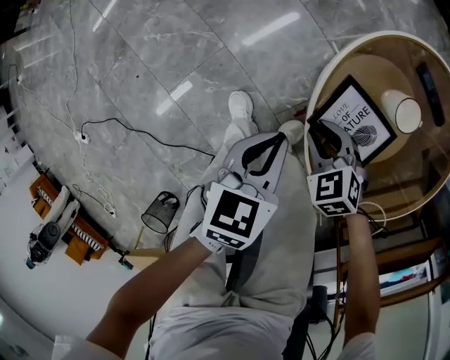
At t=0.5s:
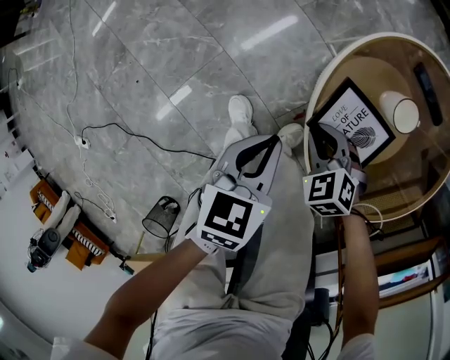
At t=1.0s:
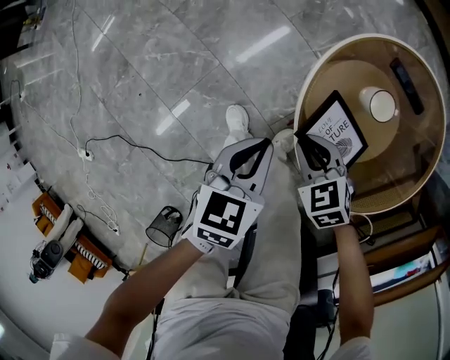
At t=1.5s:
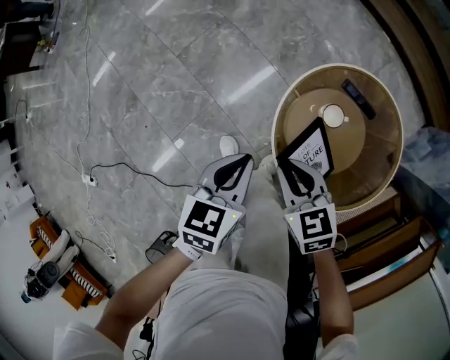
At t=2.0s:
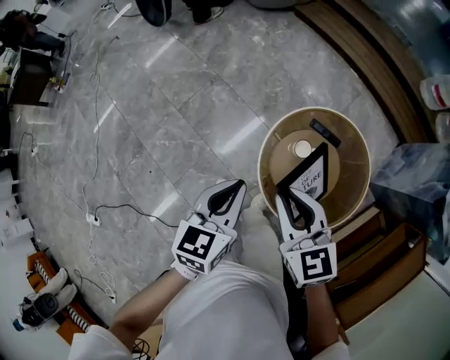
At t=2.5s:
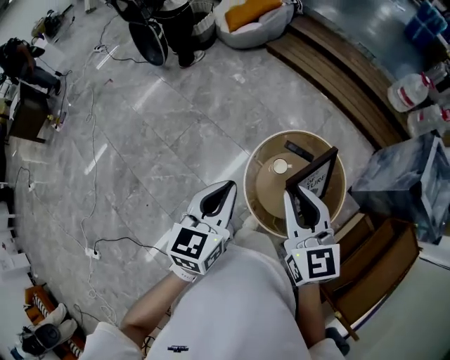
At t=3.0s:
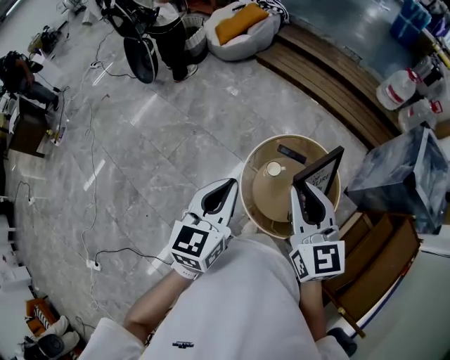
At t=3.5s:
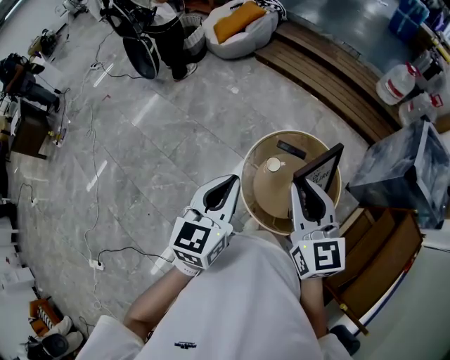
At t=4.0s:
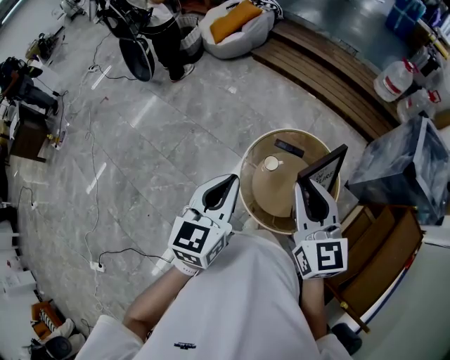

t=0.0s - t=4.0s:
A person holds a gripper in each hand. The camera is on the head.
t=0.0s - t=2.0s: The grippers both shift upward by roughly 40 cm. The right gripper tilts its fingers approximately 40 degrees upward.
t=2.0s - t=4.0s: The two grippers go some 20 cm upward and to the right. The right gripper turns by roughly 30 degrees.

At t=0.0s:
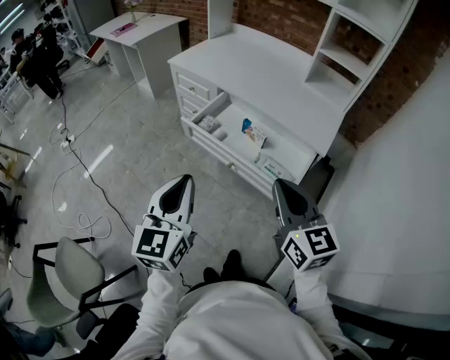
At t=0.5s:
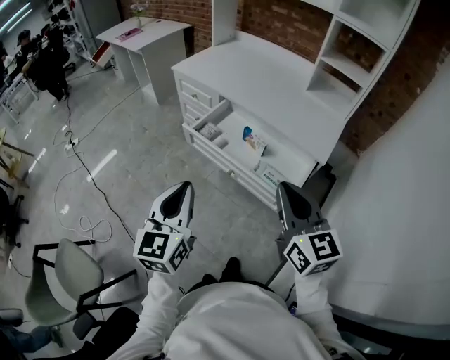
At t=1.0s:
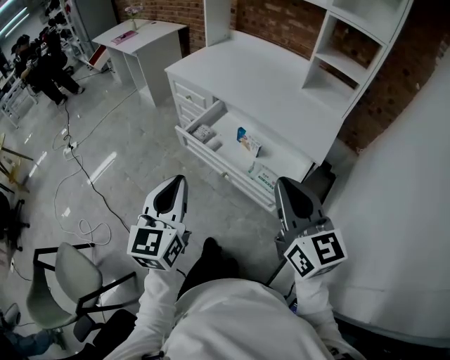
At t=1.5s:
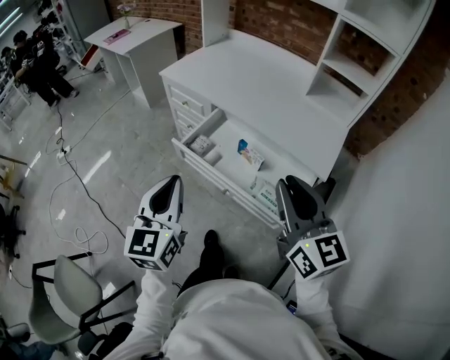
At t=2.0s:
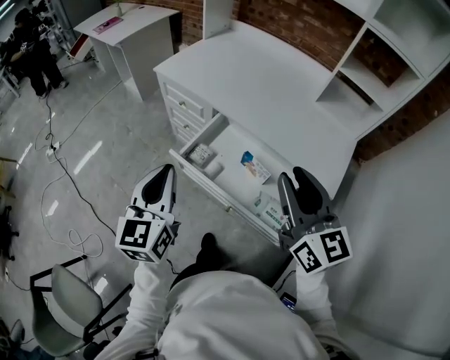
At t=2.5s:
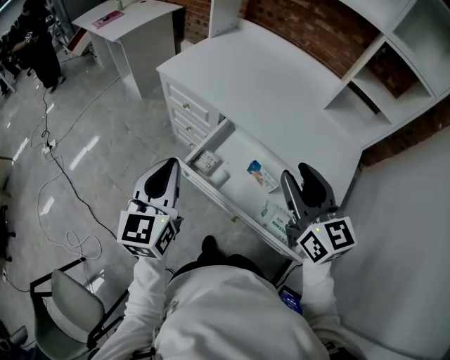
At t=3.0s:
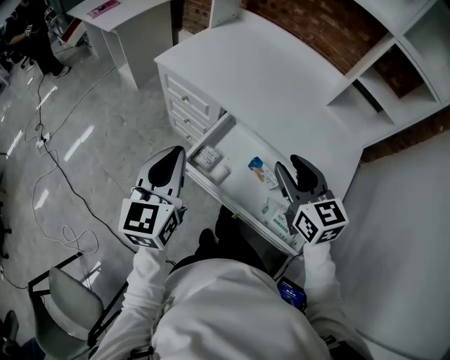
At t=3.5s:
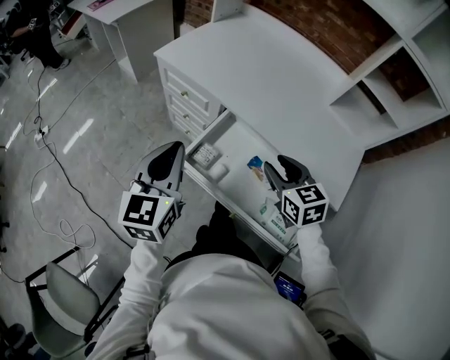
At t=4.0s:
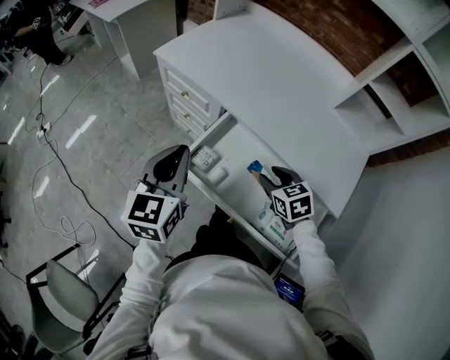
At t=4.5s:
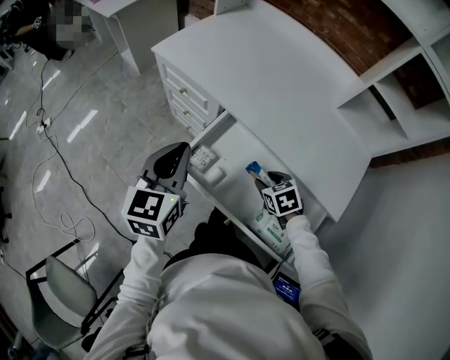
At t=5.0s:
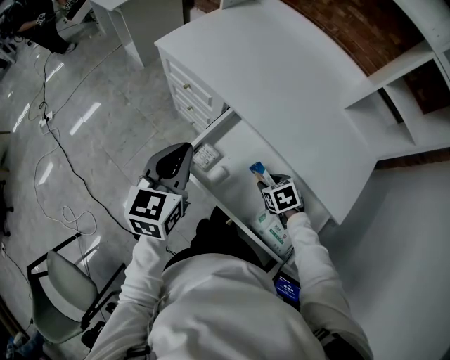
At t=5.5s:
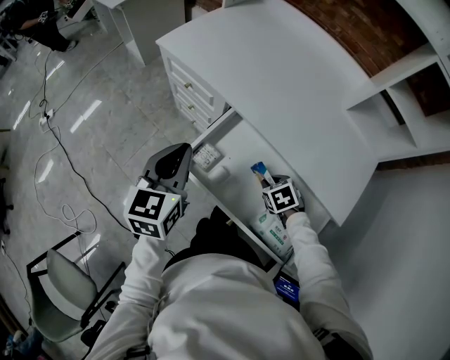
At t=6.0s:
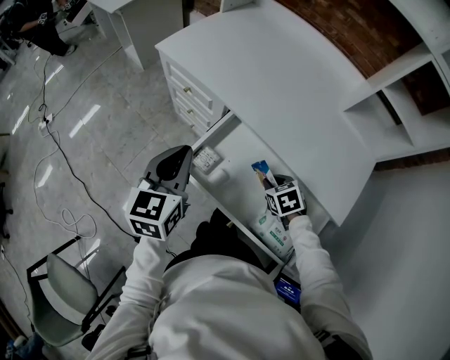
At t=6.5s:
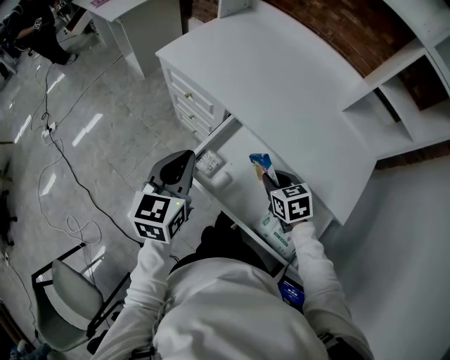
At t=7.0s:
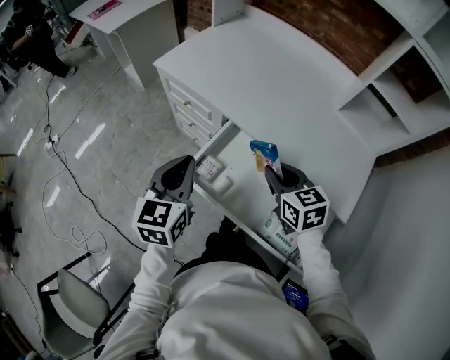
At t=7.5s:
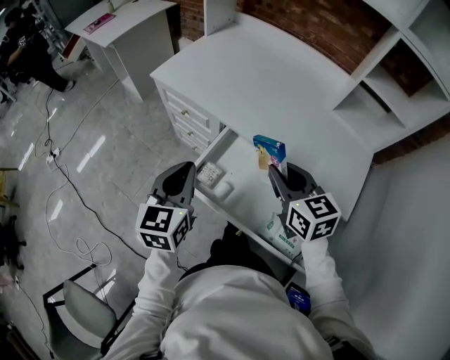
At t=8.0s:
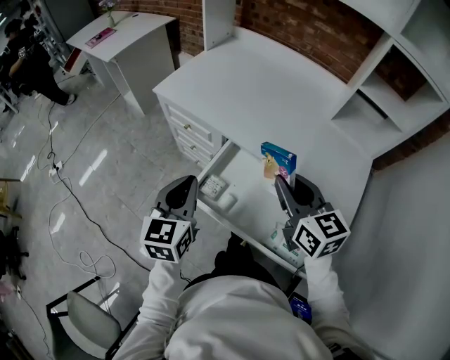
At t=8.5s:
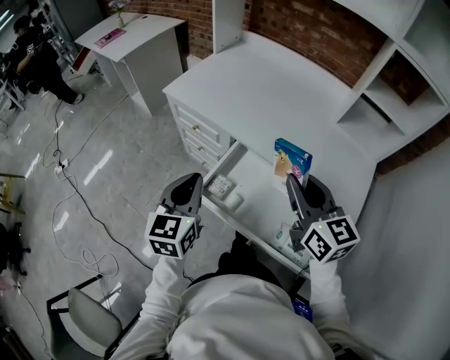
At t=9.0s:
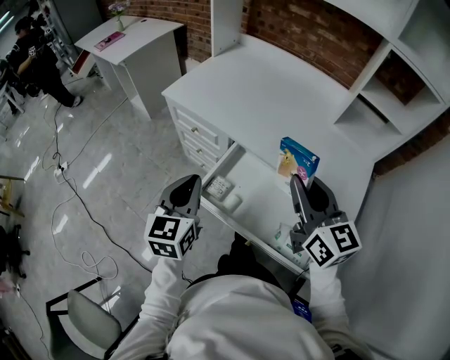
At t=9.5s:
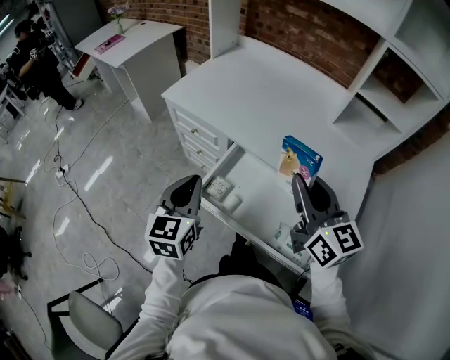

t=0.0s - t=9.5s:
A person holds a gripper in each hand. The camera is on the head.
t=0.0s - t=2.0s: The grippers both shift forward by approximately 25 cm. The right gripper opens up.
t=2.0s - t=4.0s: The left gripper is displaced forward by some 15 cm. Meanwhile the right gripper heads downward and forward, covering some 30 cm, and angles its fingers downward, by roughly 50 degrees.
t=4.0s - t=5.5s: The right gripper goes about 10 cm downward, changes its angle by approximately 20 degrees, and closes its fingers.
t=5.5s - t=7.5s: The right gripper travels upward by about 25 cm, and tilts its fingers about 50 degrees upward.
t=7.5s - t=9.5s: The right gripper heads upward, covering about 10 cm, and swivels roughly 20 degrees.

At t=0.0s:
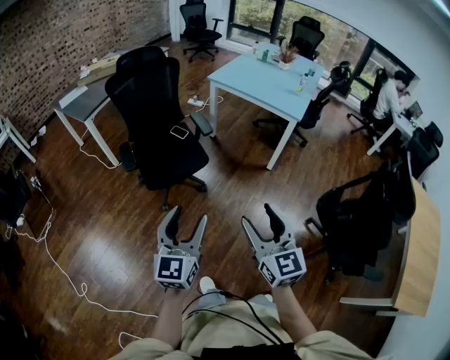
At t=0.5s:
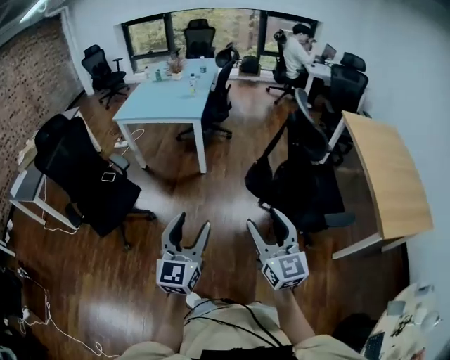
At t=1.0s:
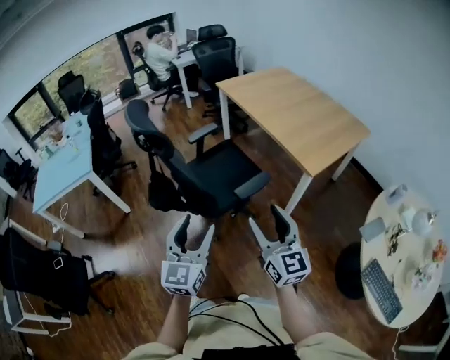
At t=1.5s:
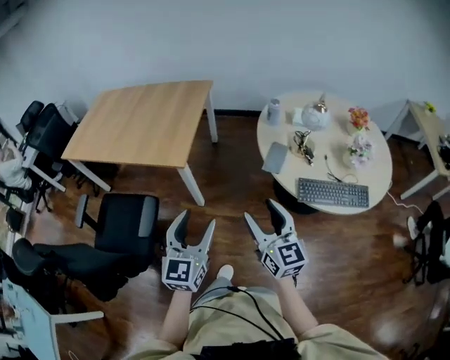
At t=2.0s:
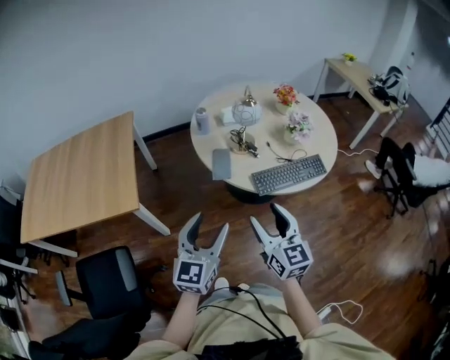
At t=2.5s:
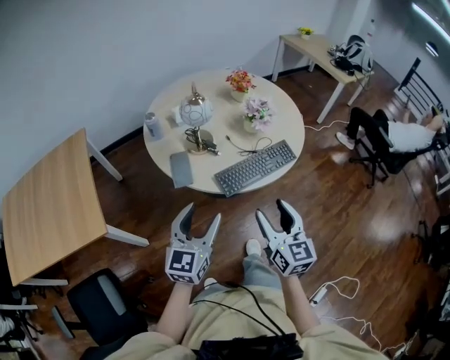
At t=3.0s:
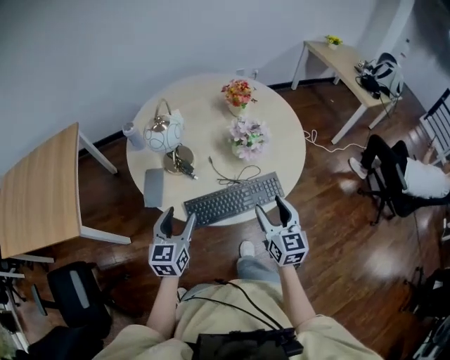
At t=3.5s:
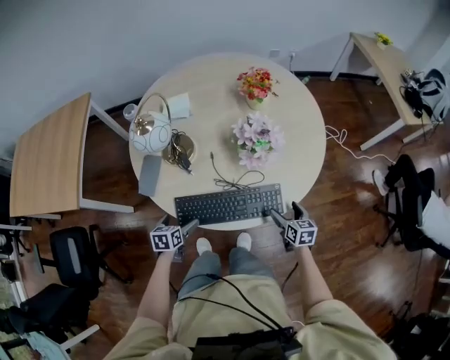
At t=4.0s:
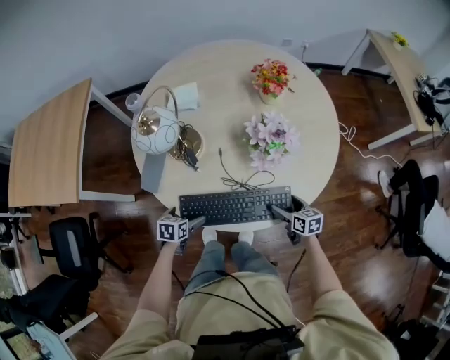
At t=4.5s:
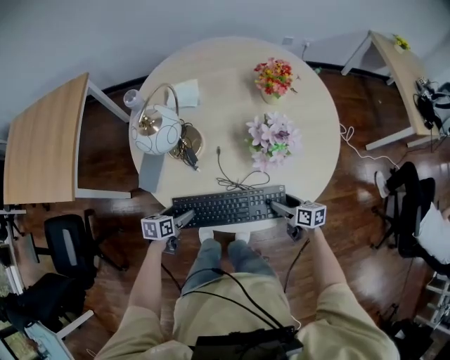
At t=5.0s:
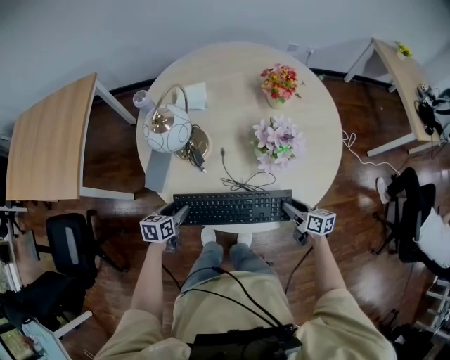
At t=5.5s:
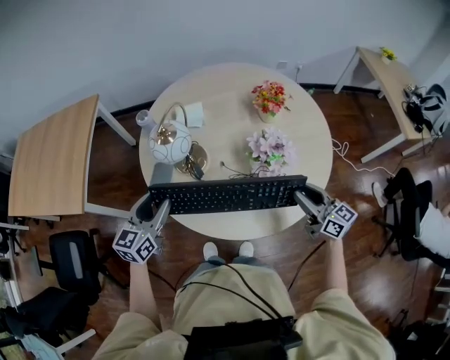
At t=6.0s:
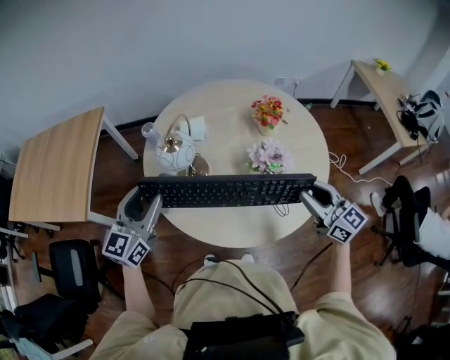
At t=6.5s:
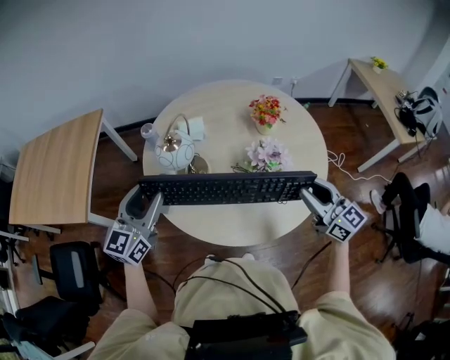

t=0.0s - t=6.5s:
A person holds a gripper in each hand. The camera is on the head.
t=0.0s - t=2.0s: Both grippers are carried approximately 1 m. The left gripper swivels approximately 150 degrees. Meanwhile the right gripper turns by roughly 140 degrees.
t=2.0s - t=4.5s: The right gripper shifts by some 70 cm, and points its fingers some 30 degrees further downward. The left gripper heads downward, covering approximately 40 cm, and tilts its fingers some 40 degrees downward.
t=4.5s - t=6.5s: The grippers both shift upward by about 40 cm. The left gripper angles its fingers upward, by some 40 degrees. The right gripper tips its fingers upward by some 30 degrees, and closes.

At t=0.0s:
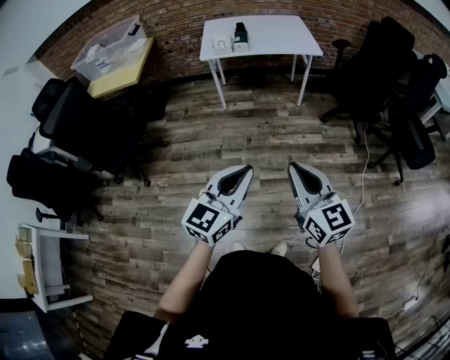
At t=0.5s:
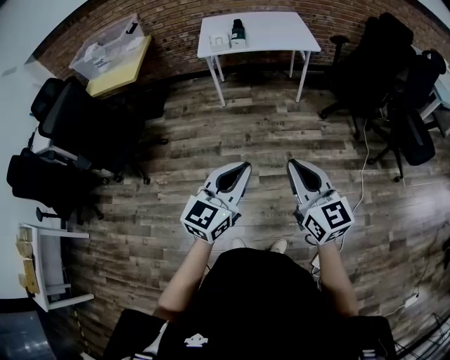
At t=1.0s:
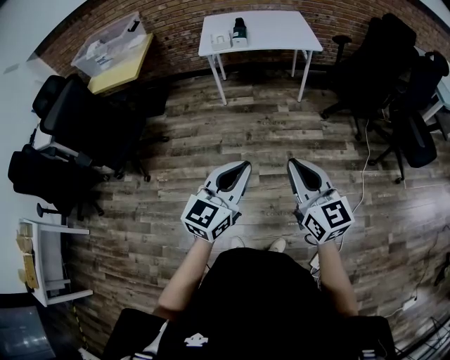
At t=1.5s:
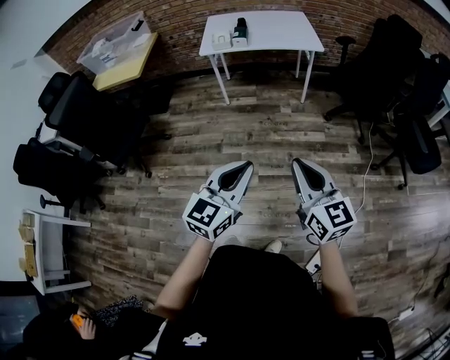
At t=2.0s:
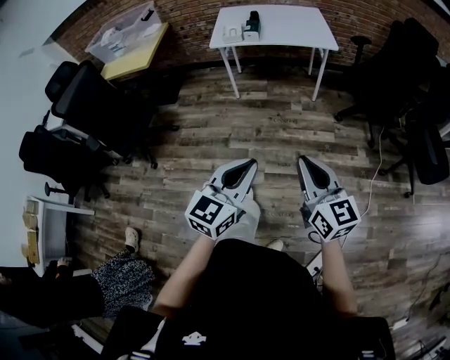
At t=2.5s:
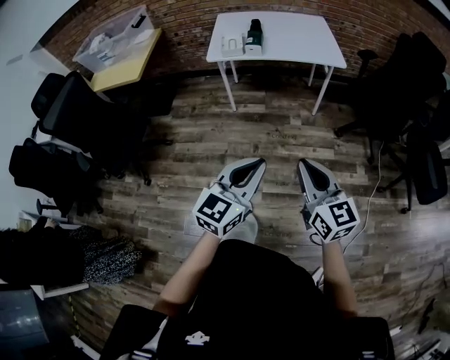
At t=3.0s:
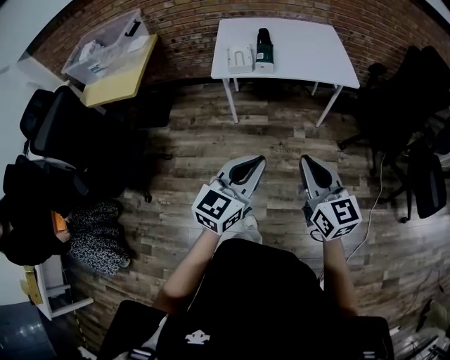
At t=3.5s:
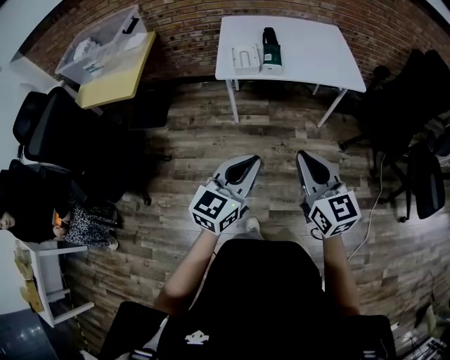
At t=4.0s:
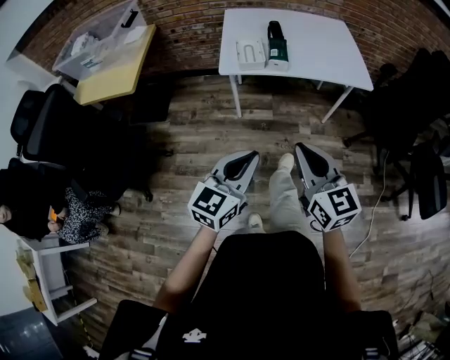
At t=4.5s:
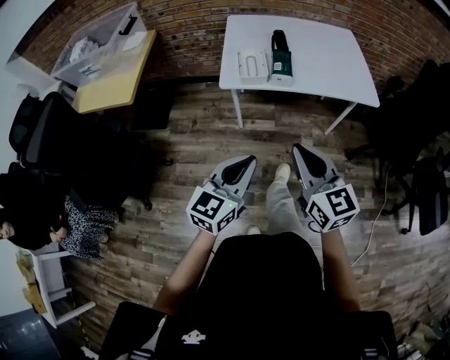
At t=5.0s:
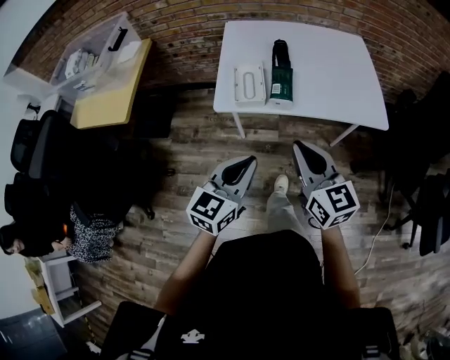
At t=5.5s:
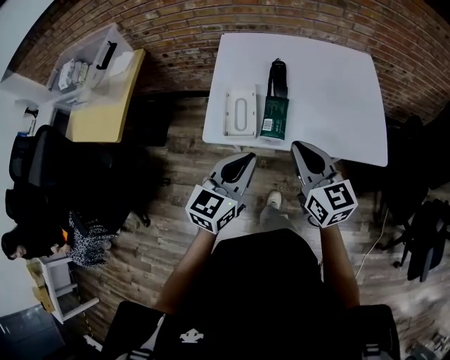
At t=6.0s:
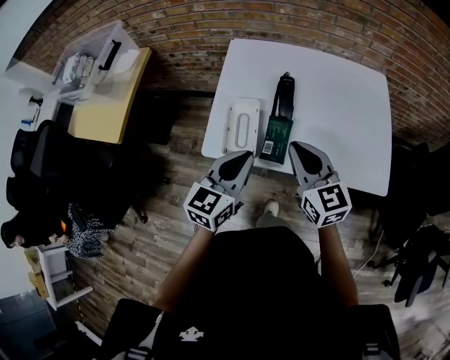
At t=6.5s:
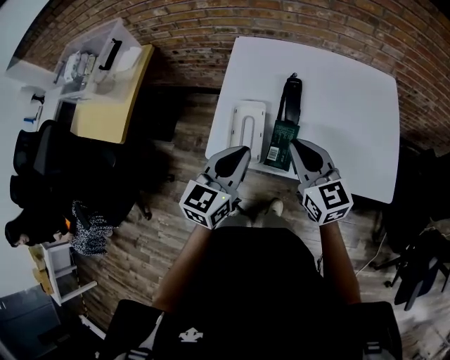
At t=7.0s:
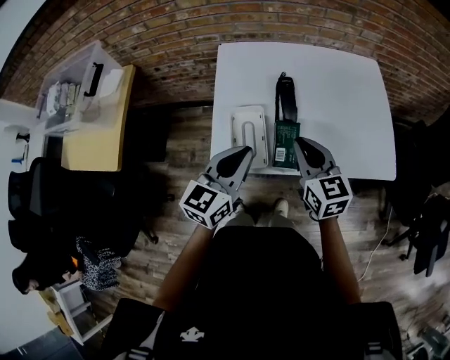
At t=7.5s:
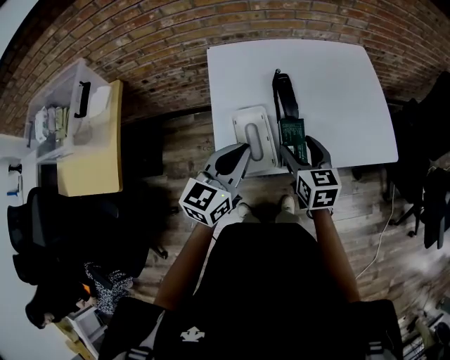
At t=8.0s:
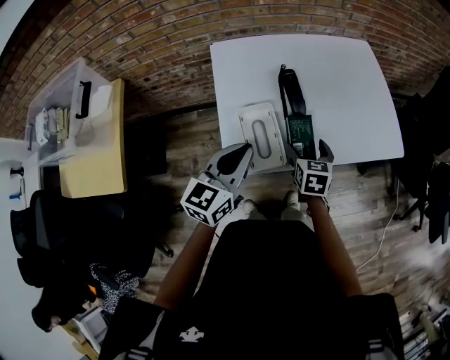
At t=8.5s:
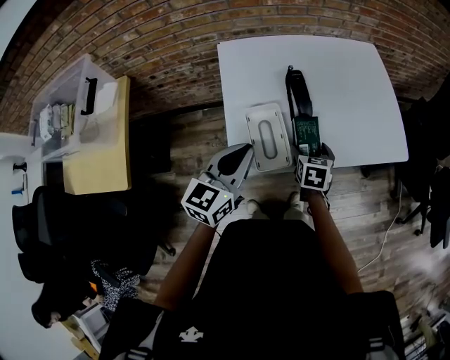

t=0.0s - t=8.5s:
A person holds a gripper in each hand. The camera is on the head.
t=0.0s - t=2.0s: Both grippers move to the right, some 5 cm.
t=2.0s - t=4.0s: The two grippers travel together, forward and to the left, roughly 40 cm.
t=4.0s - t=6.5s: The two grippers travel together, forward, some 50 cm.
t=6.5s - t=8.5s: The right gripper moves downward, approximately 20 cm, tips its fingers downward by approximately 30 degrees, and opens up, while the left gripper ends up approximately 10 cm from where it was.
